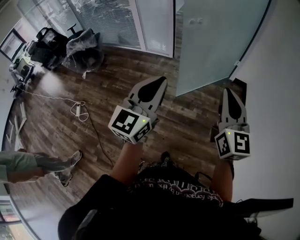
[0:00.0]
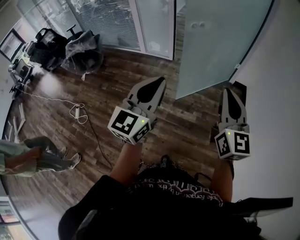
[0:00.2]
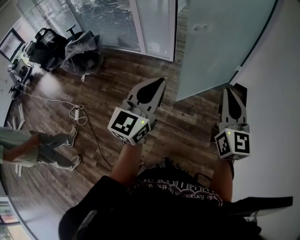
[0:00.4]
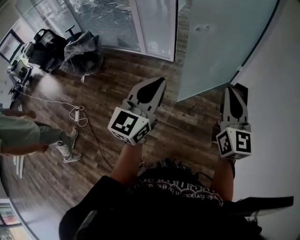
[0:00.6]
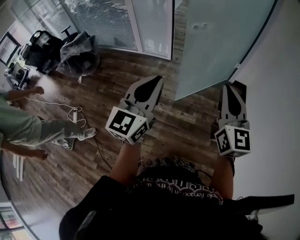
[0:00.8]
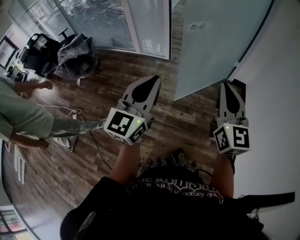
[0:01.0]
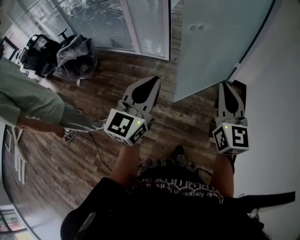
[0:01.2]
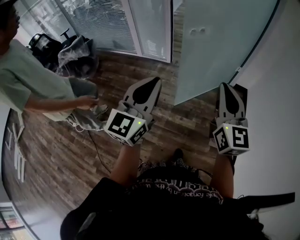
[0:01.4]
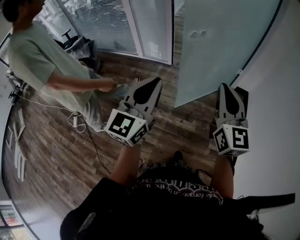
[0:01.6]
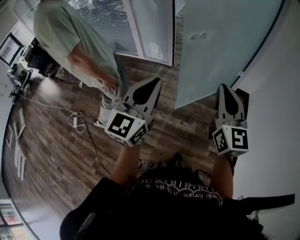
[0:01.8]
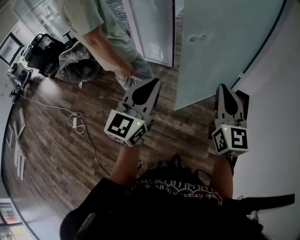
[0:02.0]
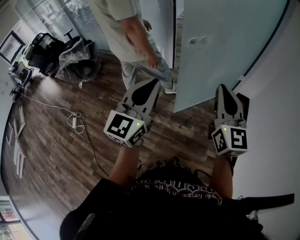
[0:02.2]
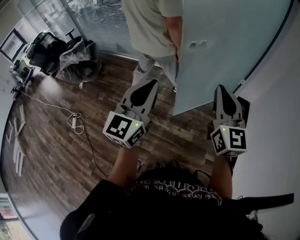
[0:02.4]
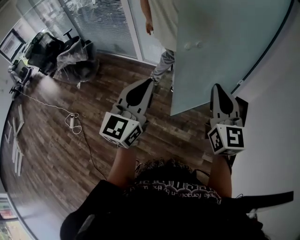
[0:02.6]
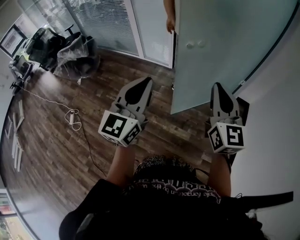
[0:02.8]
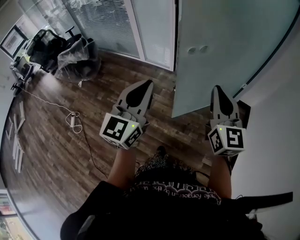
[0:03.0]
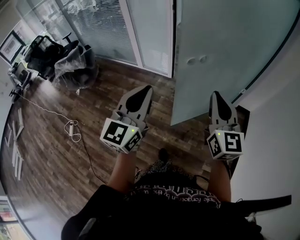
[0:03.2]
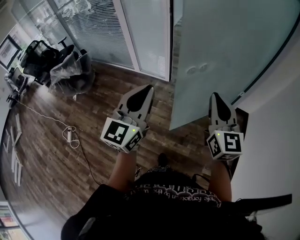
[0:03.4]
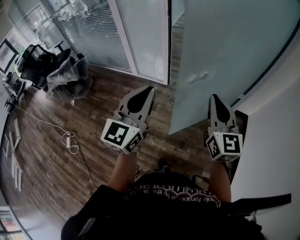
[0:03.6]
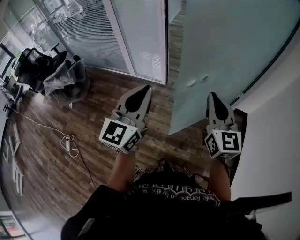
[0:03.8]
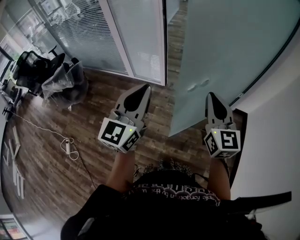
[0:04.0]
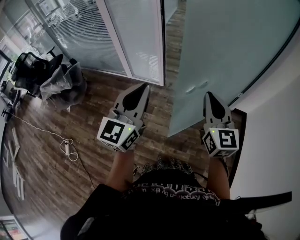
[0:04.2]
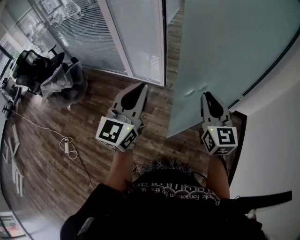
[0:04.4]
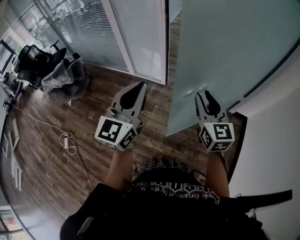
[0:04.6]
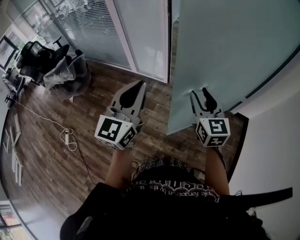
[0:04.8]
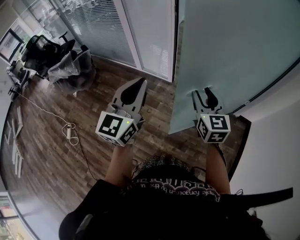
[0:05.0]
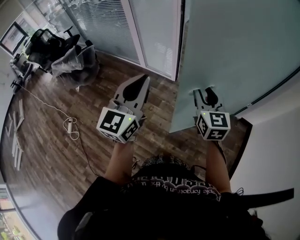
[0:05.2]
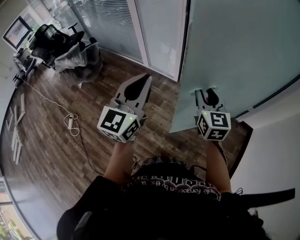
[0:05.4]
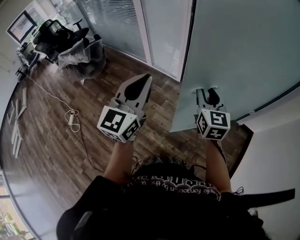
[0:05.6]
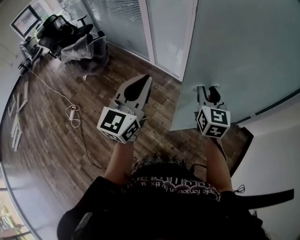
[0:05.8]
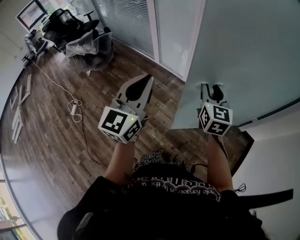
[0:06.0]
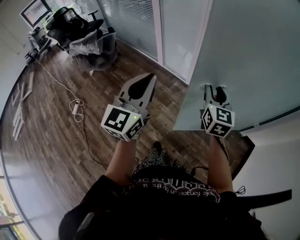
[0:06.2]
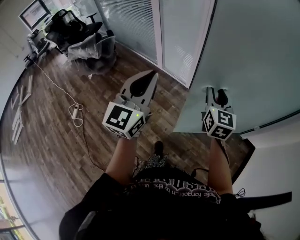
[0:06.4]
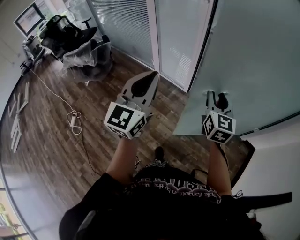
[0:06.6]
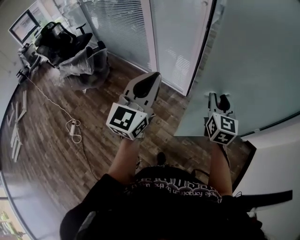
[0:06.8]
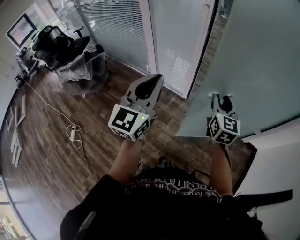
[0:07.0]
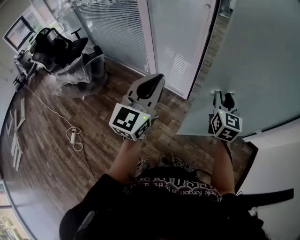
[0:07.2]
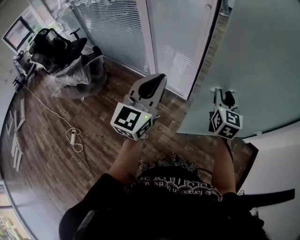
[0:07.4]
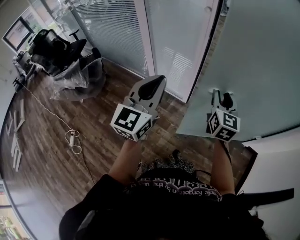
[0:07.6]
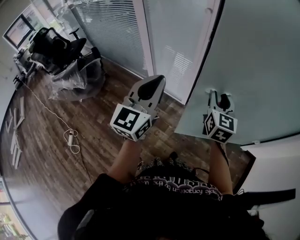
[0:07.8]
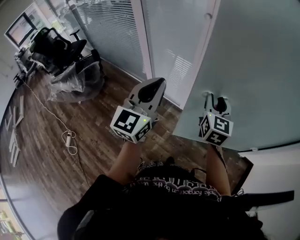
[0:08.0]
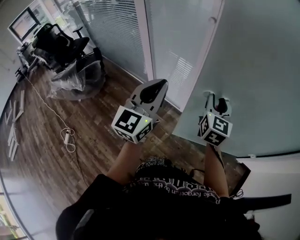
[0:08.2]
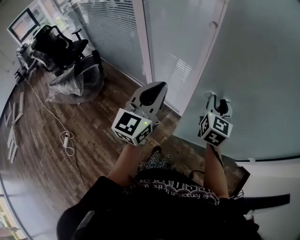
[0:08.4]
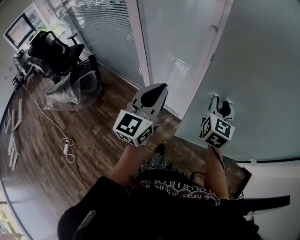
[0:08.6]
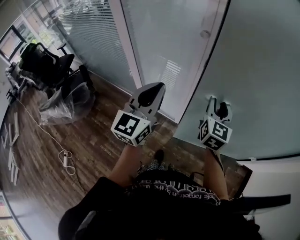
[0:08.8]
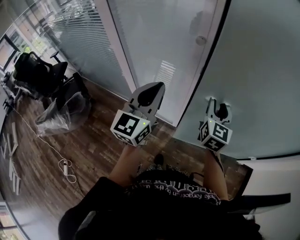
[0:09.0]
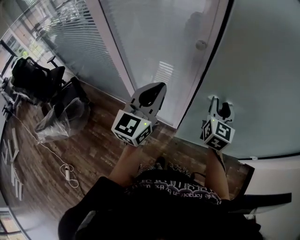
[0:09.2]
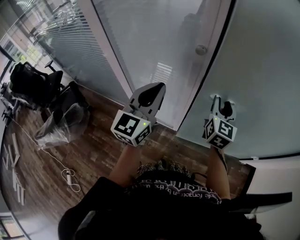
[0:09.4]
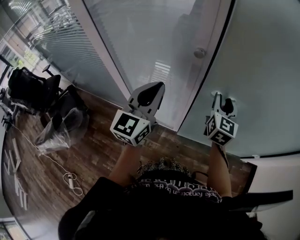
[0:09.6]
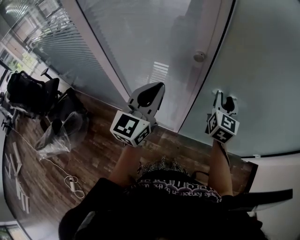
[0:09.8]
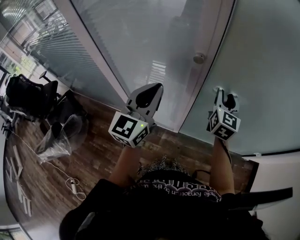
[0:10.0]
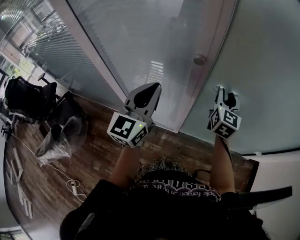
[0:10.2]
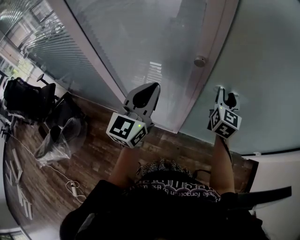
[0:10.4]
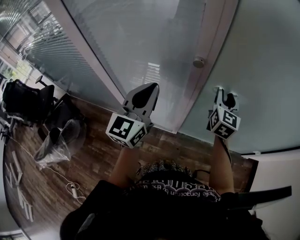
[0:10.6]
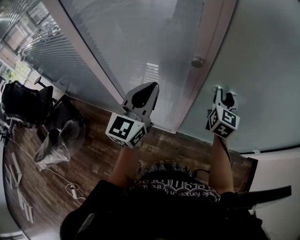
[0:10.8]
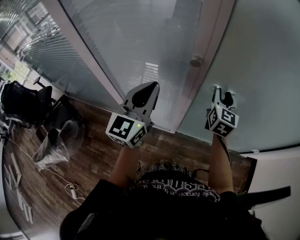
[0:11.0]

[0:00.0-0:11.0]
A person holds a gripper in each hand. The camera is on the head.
0:00.0 to 0:01.6: The grippers both shift forward by some 15 cm.
0:01.6 to 0:03.2: Both grippers move forward, some 20 cm.
0:03.2 to 0:04.8: Both grippers travel together forward, roughly 20 cm. The right gripper opens.
0:04.8 to 0:06.2: The right gripper heads forward, covering approximately 5 cm.
0:06.2 to 0:07.8: Both grippers travel together forward, approximately 25 cm.
0:07.8 to 0:09.4: Both grippers move forward, about 30 cm.
0:09.4 to 0:11.0: The two grippers go roughly 5 cm forward.

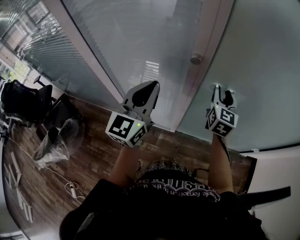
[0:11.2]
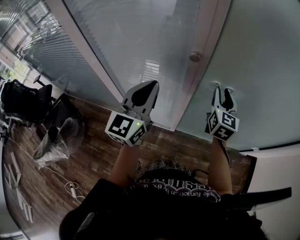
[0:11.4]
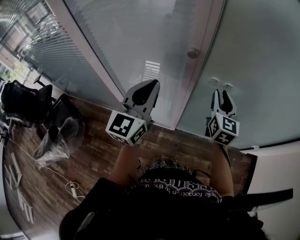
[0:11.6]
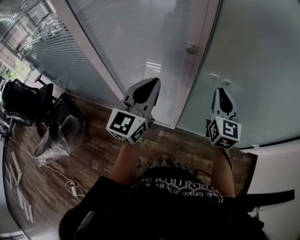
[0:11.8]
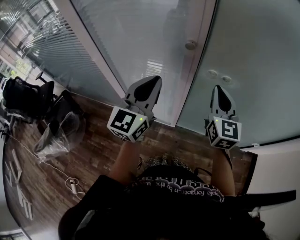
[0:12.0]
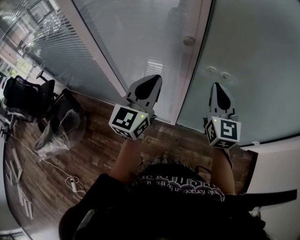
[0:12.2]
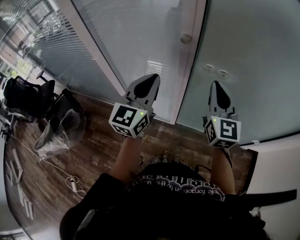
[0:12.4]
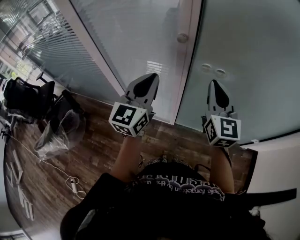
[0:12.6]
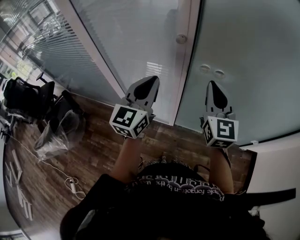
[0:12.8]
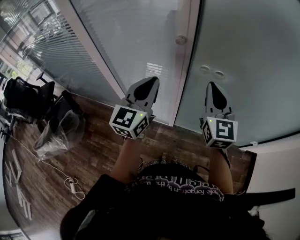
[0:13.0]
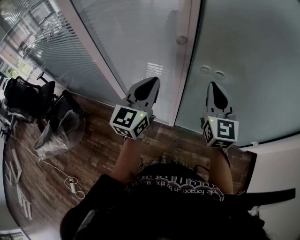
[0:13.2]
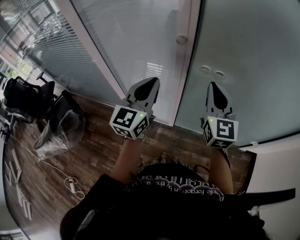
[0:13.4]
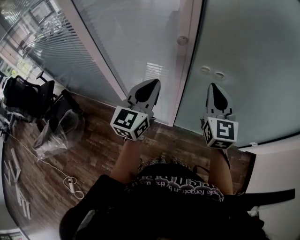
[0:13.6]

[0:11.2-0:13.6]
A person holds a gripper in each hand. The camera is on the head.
0:11.2 to 0:12.4: The left gripper changes place by about 5 cm, while the right gripper moves backward and upward, about 15 cm, and closes up.
0:12.4 to 0:13.6: There are only small adjustments of the grippers.

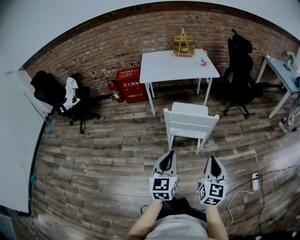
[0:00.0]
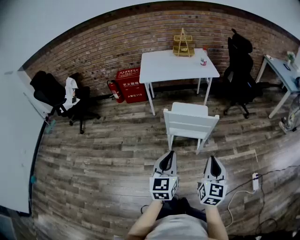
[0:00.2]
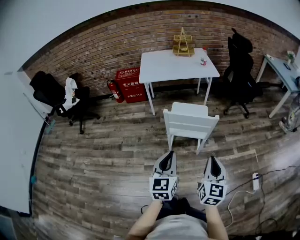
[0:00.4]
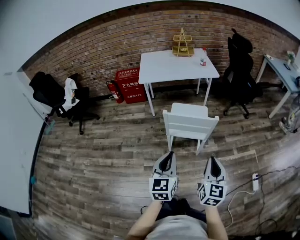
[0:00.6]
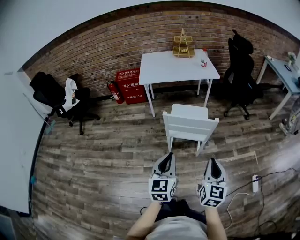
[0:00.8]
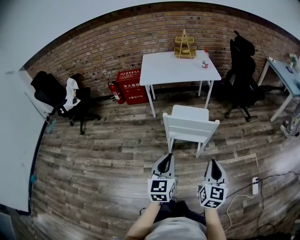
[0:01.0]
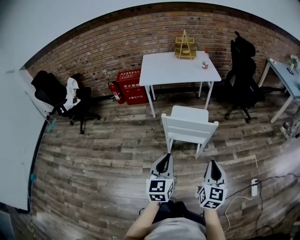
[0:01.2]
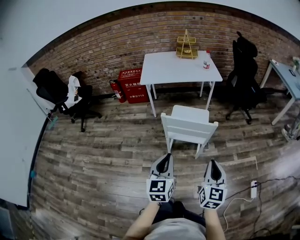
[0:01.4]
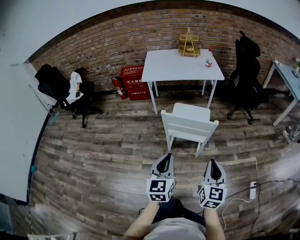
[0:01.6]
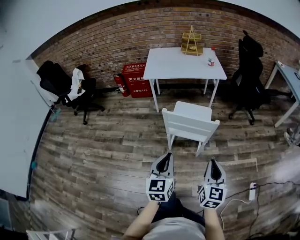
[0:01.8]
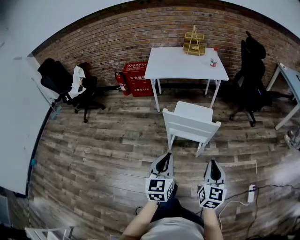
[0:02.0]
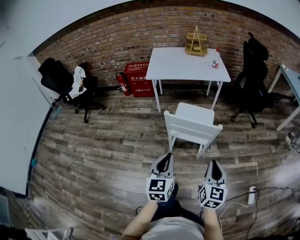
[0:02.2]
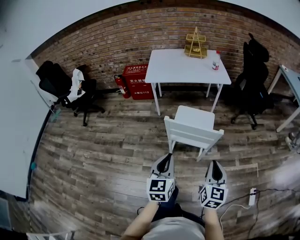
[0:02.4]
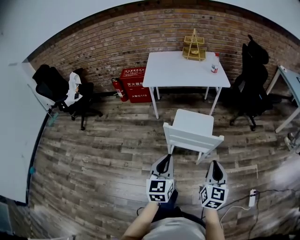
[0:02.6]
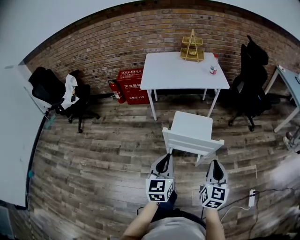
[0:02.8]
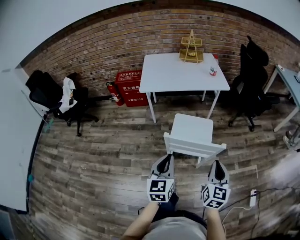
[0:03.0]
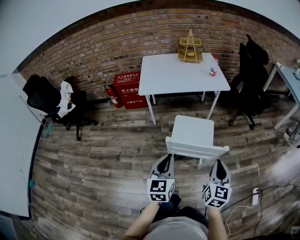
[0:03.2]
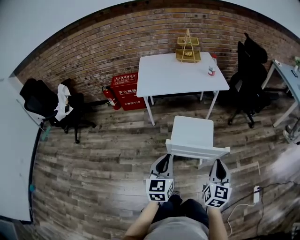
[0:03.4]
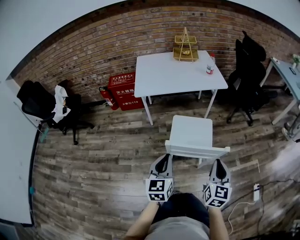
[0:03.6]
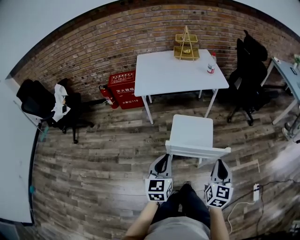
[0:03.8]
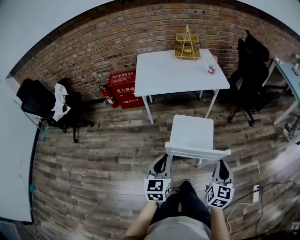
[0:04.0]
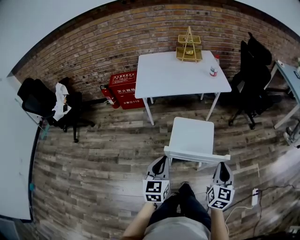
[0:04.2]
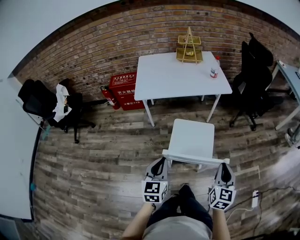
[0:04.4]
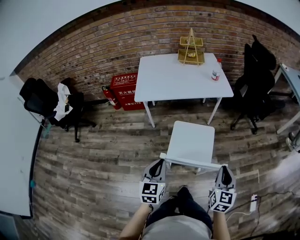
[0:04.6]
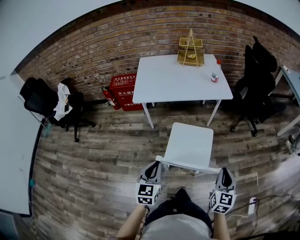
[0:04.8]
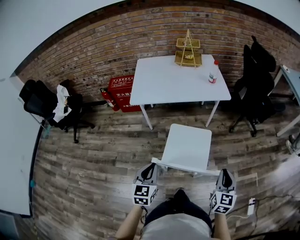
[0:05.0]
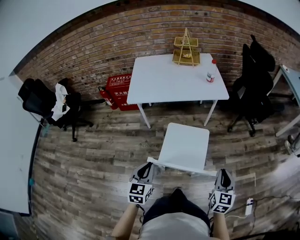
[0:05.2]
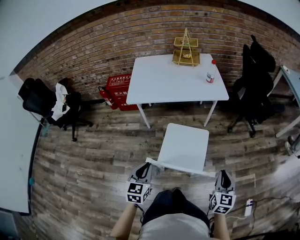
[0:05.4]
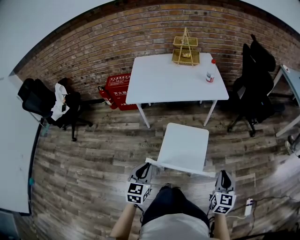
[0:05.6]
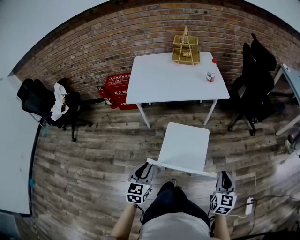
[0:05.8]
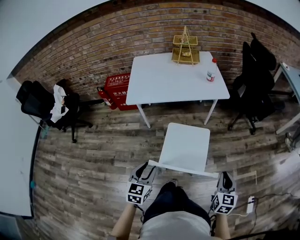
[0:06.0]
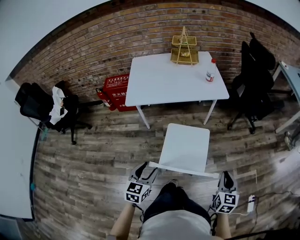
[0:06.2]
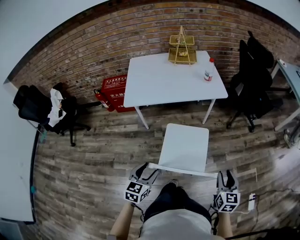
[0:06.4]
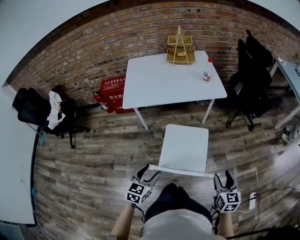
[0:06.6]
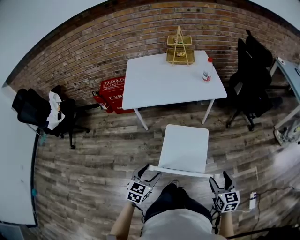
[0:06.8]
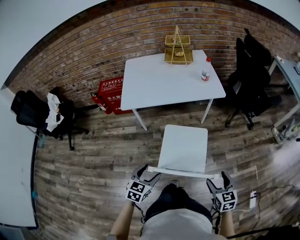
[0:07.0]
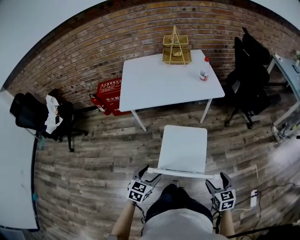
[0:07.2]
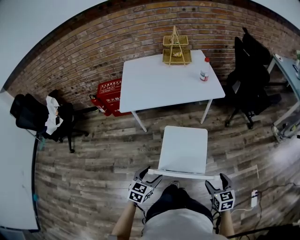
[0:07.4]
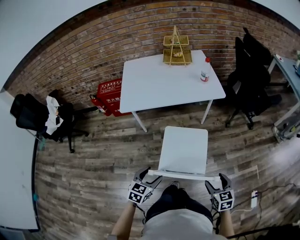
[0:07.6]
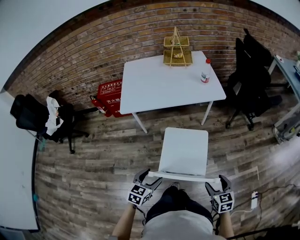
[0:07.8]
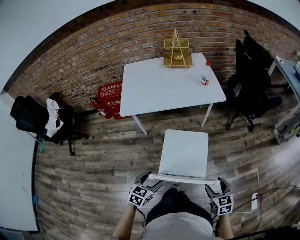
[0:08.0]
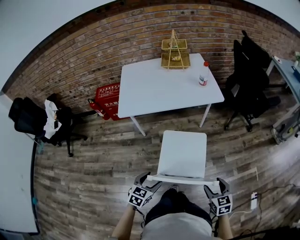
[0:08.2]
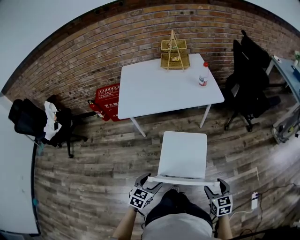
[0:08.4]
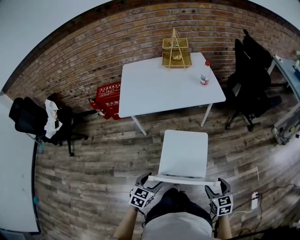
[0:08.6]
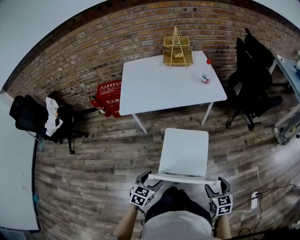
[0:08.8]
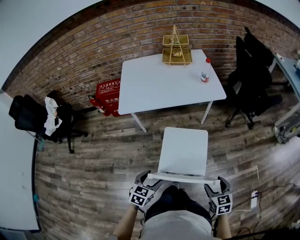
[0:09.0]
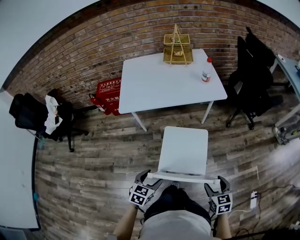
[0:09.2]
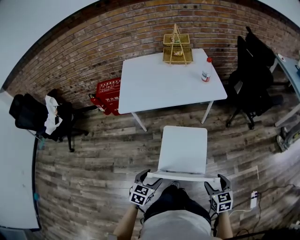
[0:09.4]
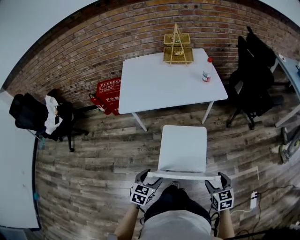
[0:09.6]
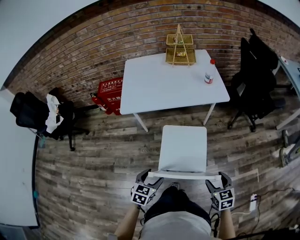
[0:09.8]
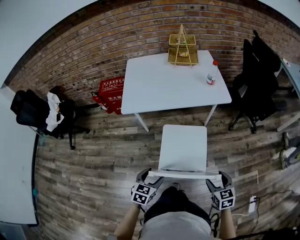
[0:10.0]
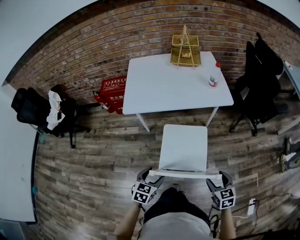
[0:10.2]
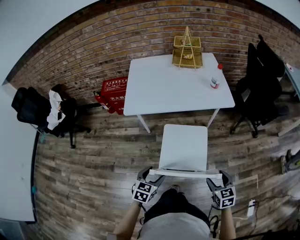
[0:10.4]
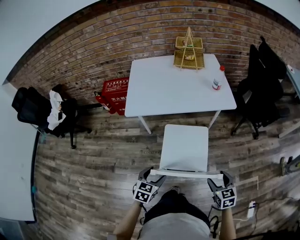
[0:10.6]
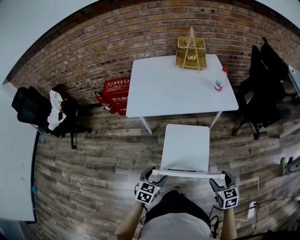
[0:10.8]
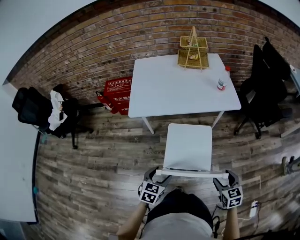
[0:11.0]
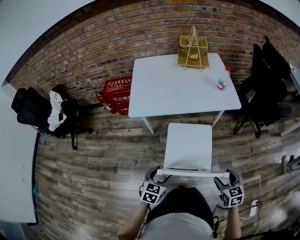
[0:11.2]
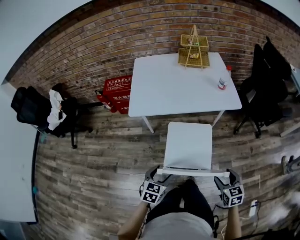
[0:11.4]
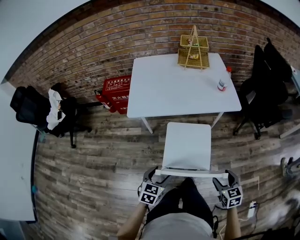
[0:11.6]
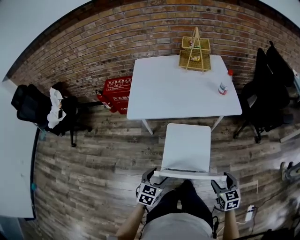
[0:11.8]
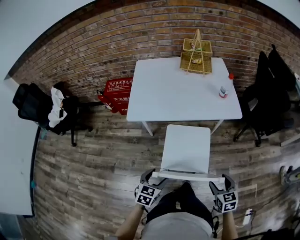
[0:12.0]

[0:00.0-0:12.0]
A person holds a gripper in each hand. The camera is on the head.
0:00.0 to 0:01.6: The right gripper changes place by about 5 cm.
0:01.6 to 0:03.0: Both grippers travel together forward, some 15 cm.
0:03.0 to 0:04.4: The two grippers go roughly 10 cm forward.
0:04.4 to 0:06.0: The left gripper ends up roughly 5 cm from where it was, and opens. Meanwhile the right gripper goes approximately 10 cm to the right.
0:06.0 to 0:07.6: The grippers both shift downward by roughly 5 cm. The right gripper rotates some 20 degrees, and opens, while the left gripper opens up.
0:07.6 to 0:09.0: The grippers move only a little.
0:09.0 to 0:10.4: The left gripper is displaced forward by roughly 5 cm. The right gripper moves forward, approximately 10 cm.
0:10.4 to 0:12.0: Both grippers move forward, roughly 5 cm.
